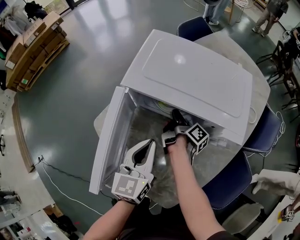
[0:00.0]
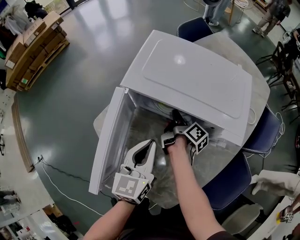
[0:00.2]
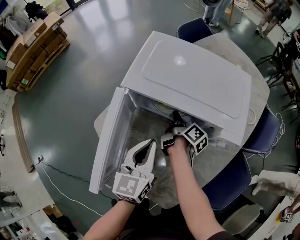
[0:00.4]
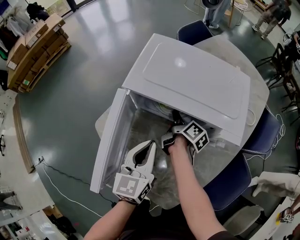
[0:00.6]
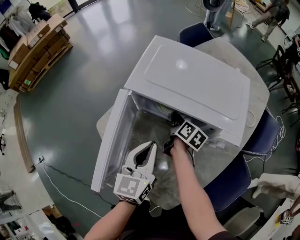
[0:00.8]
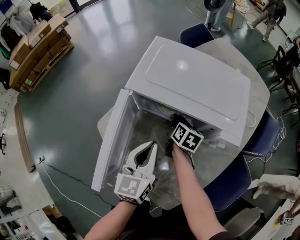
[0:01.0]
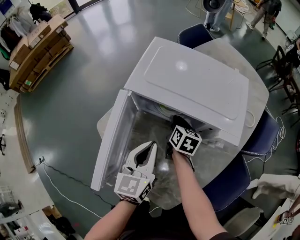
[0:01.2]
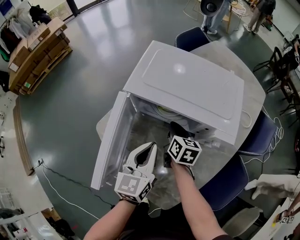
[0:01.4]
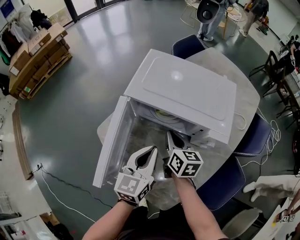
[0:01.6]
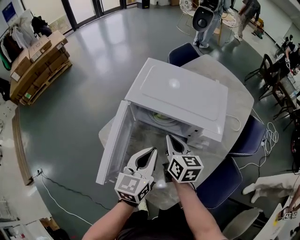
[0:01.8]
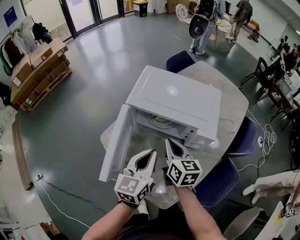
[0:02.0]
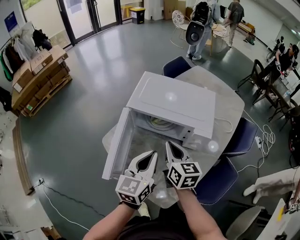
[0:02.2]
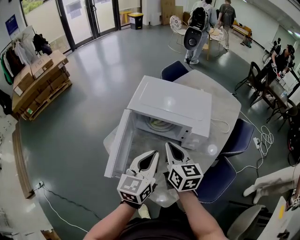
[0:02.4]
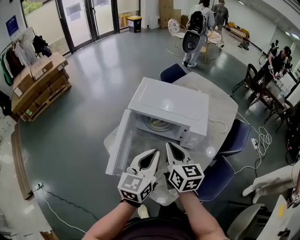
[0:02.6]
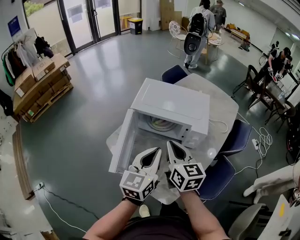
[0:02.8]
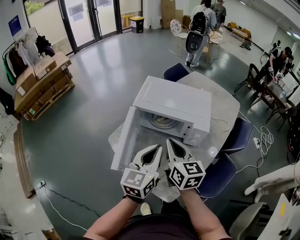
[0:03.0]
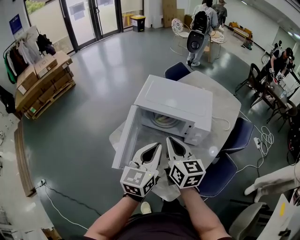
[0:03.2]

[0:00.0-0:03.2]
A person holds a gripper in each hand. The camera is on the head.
1.6 to 3.2 s: The left gripper is displaced upward by approximately 15 cm.

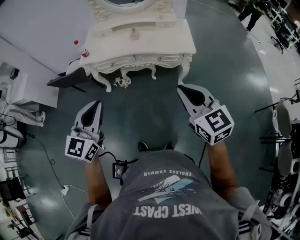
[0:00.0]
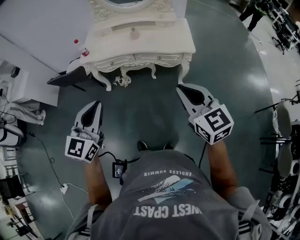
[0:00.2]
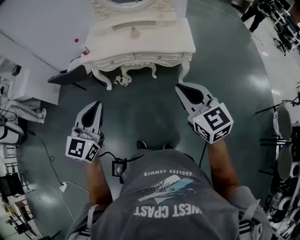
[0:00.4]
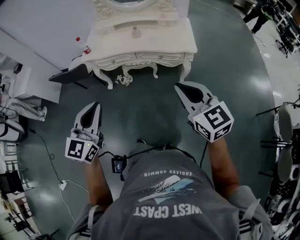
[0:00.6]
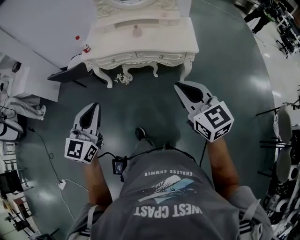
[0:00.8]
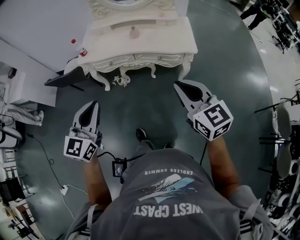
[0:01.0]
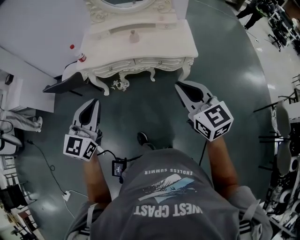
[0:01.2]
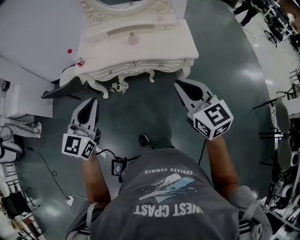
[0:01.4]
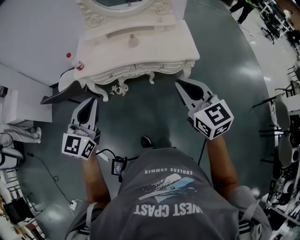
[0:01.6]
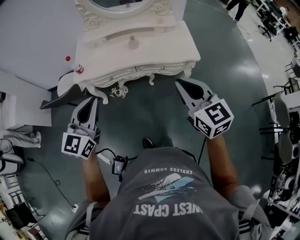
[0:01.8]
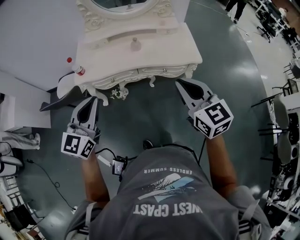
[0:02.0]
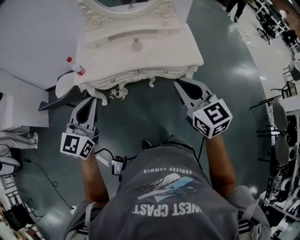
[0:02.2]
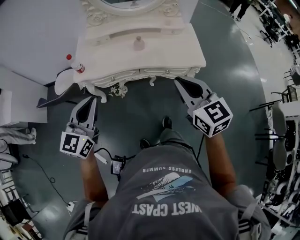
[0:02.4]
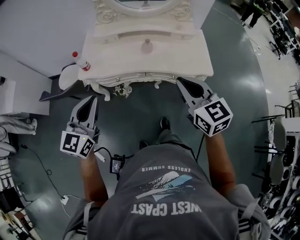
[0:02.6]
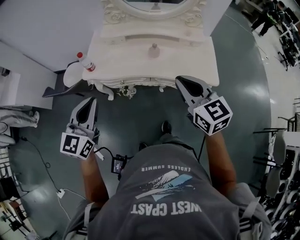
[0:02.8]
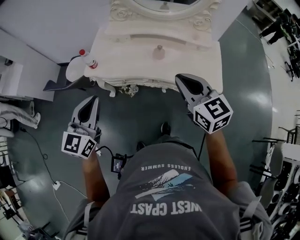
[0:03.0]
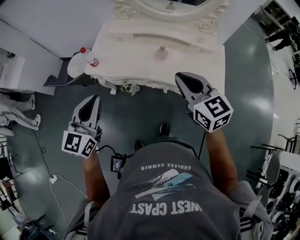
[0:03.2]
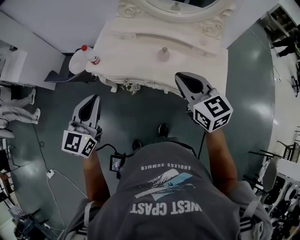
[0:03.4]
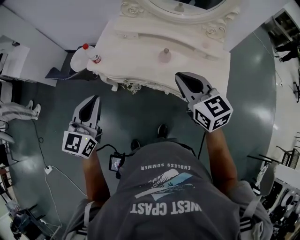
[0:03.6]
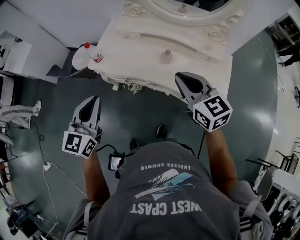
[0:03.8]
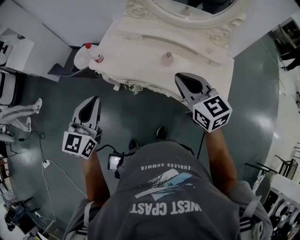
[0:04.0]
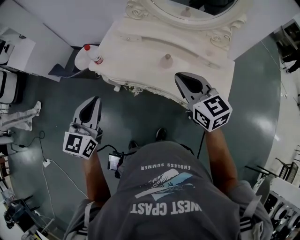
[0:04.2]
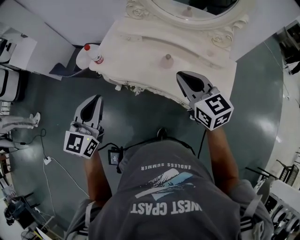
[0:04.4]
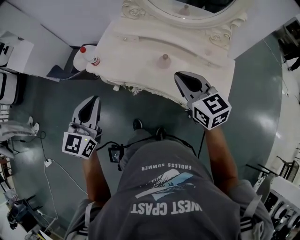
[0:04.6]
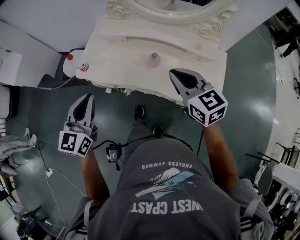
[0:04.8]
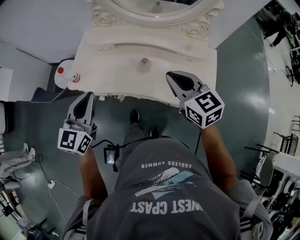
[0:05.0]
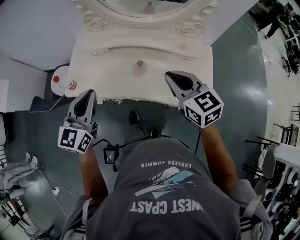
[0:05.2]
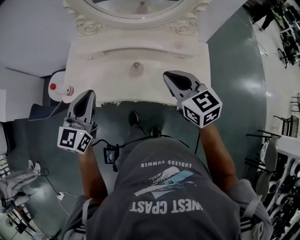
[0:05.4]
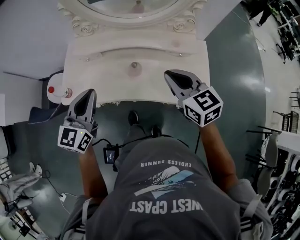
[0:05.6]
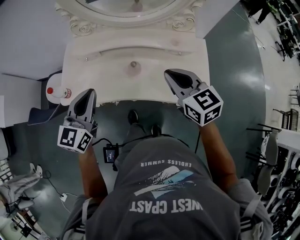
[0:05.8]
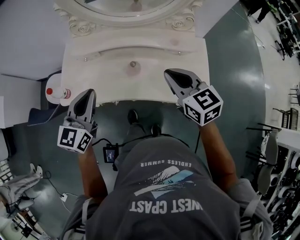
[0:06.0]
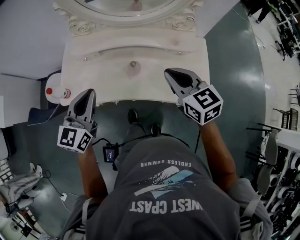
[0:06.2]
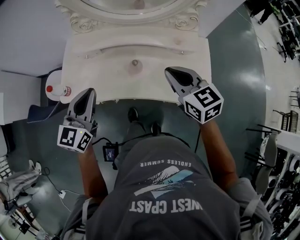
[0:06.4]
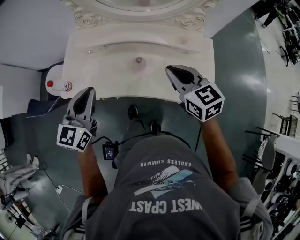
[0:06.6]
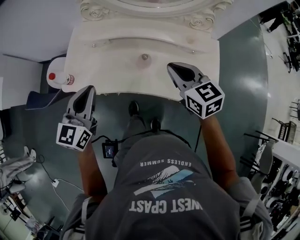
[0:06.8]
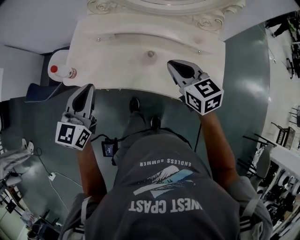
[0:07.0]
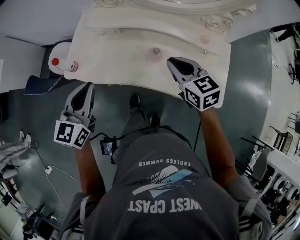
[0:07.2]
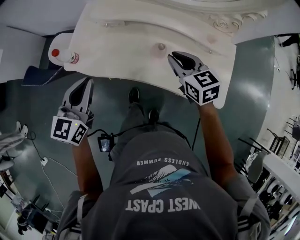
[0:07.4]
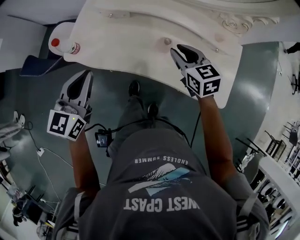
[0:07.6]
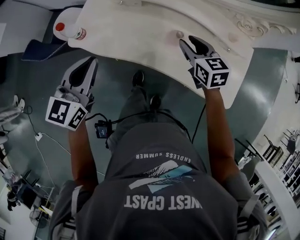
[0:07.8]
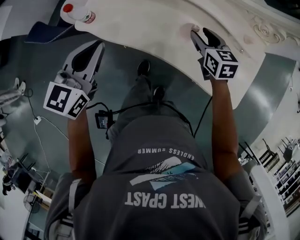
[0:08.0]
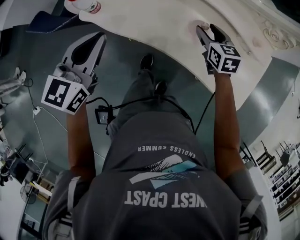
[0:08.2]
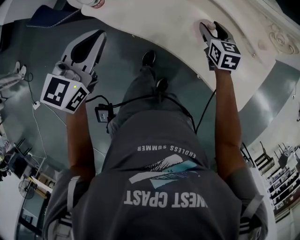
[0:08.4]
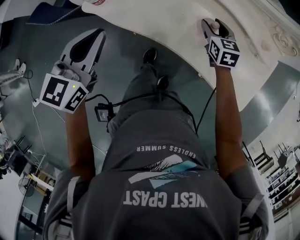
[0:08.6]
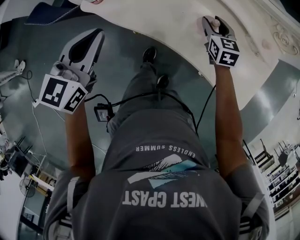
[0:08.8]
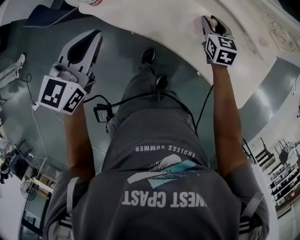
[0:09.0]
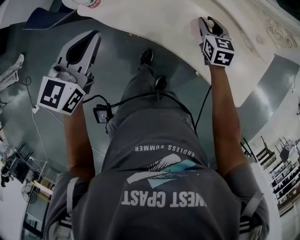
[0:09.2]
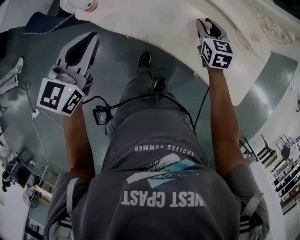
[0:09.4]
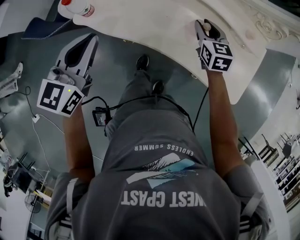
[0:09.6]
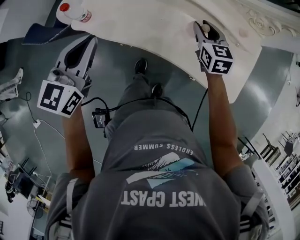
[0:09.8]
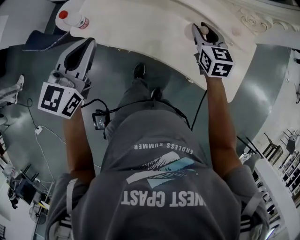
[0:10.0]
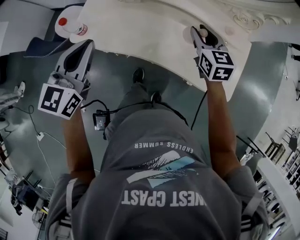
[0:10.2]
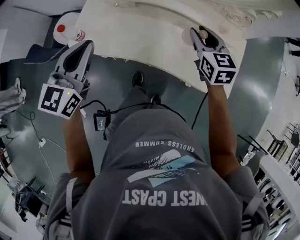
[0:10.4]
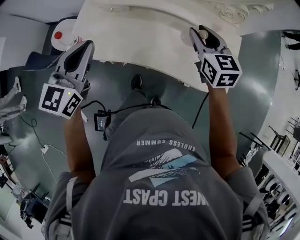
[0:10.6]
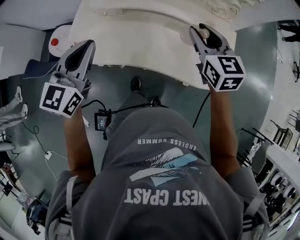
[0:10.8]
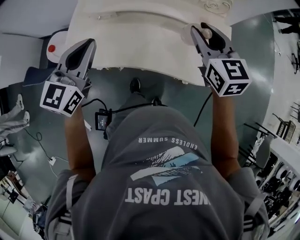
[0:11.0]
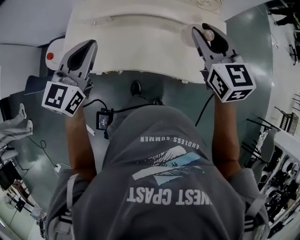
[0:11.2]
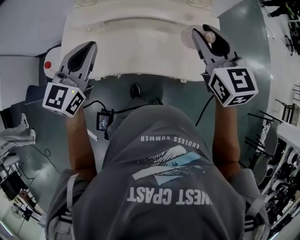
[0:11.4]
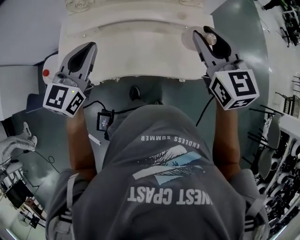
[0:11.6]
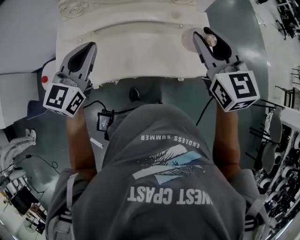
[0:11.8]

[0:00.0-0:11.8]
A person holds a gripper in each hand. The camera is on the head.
0.0 to 1.4 s: Both grippers move forward, approximately 10 cm.
1.4 to 3.0 s: Both grippers move forward, about 20 cm.
3.0 to 4.4 s: The left gripper goes approximately 5 cm to the right. The right gripper moves forward, some 10 cm.
4.4 to 6.0 s: The right gripper heads to the right and forward, covering roughly 10 cm; the left gripper moves forward and to the right, approximately 15 cm, and rotates approximately 20 degrees.
6.0 to 7.4 s: The right gripper shifts roughly 15 cm downward, to the left and forward; the left gripper shifts some 10 cm to the left.
7.4 to 8.8 s: The right gripper shifts approximately 20 cm downward and forward, and opens, while the left gripper moves roughly 5 cm.
8.8 to 10.4 s: The right gripper shifts some 20 cm upward, while the left gripper travels upward and to the right by some 10 cm.
10.4 to 11.8 s: The left gripper goes about 10 cm forward, and changes its angle by about 20 degrees. The right gripper shifts about 15 cm upward and backward.

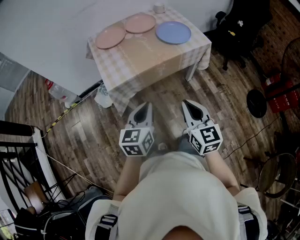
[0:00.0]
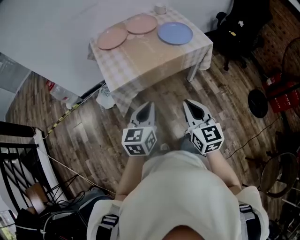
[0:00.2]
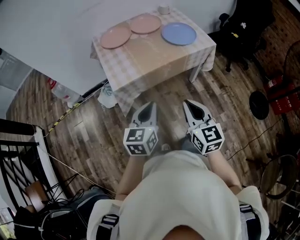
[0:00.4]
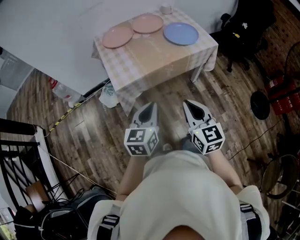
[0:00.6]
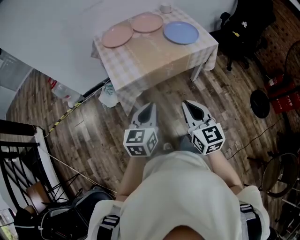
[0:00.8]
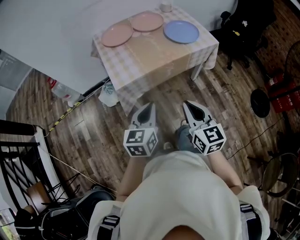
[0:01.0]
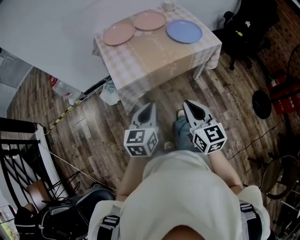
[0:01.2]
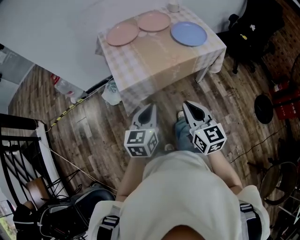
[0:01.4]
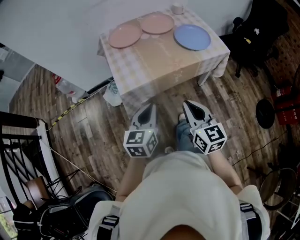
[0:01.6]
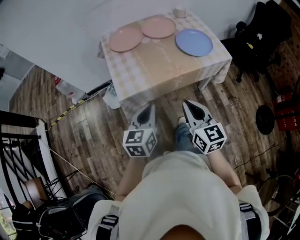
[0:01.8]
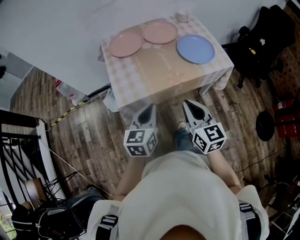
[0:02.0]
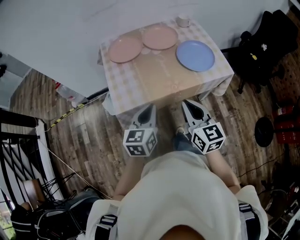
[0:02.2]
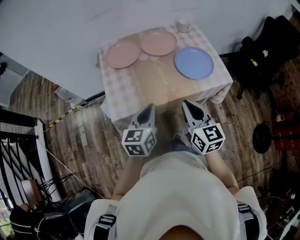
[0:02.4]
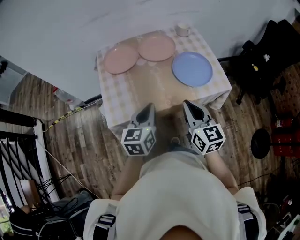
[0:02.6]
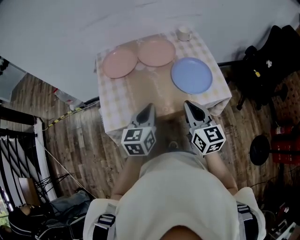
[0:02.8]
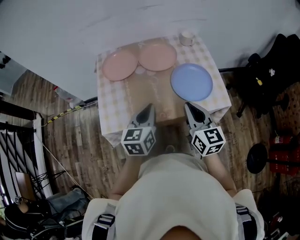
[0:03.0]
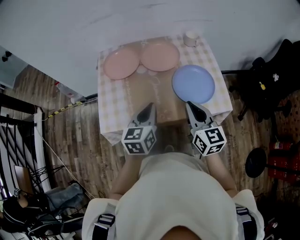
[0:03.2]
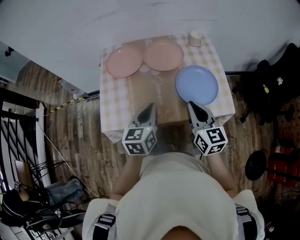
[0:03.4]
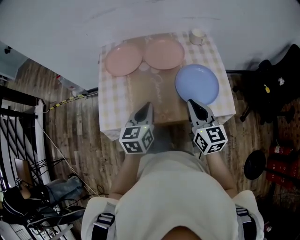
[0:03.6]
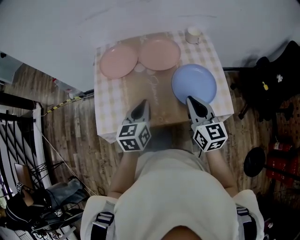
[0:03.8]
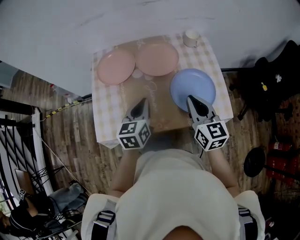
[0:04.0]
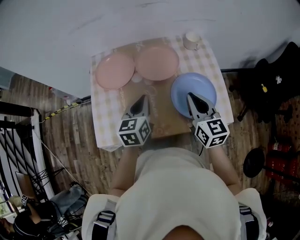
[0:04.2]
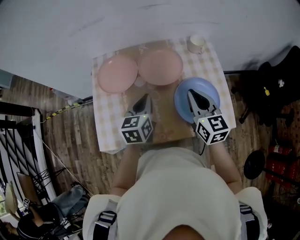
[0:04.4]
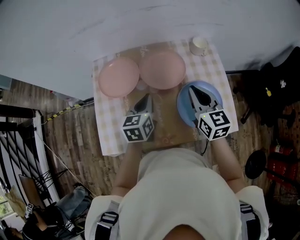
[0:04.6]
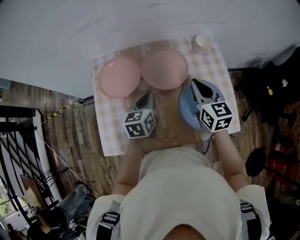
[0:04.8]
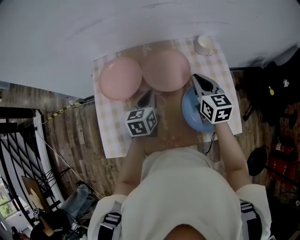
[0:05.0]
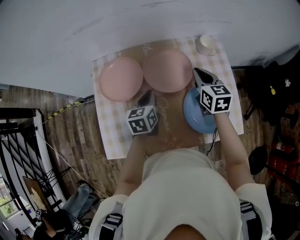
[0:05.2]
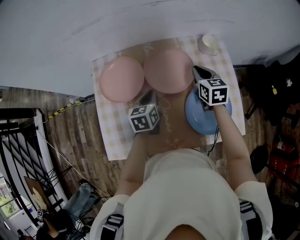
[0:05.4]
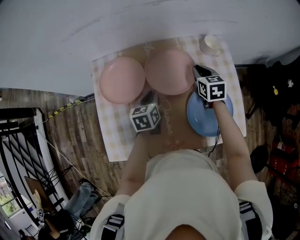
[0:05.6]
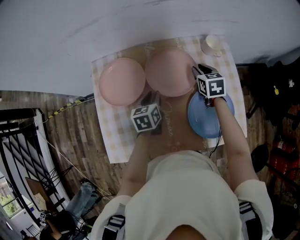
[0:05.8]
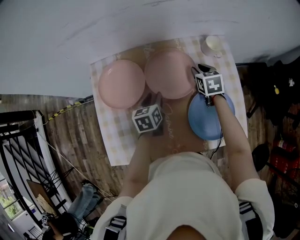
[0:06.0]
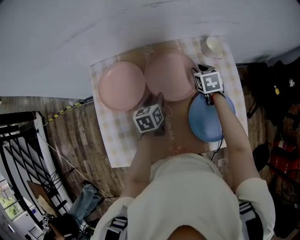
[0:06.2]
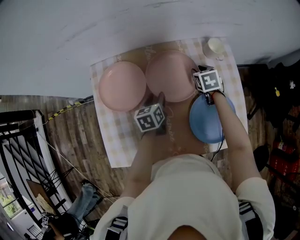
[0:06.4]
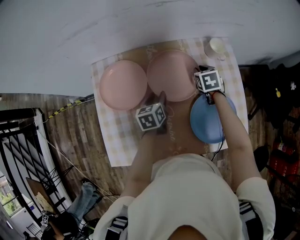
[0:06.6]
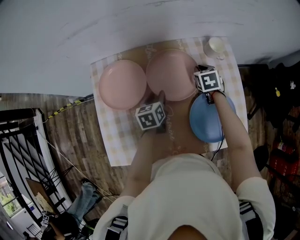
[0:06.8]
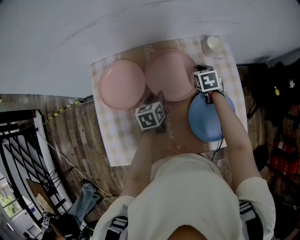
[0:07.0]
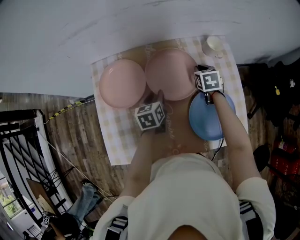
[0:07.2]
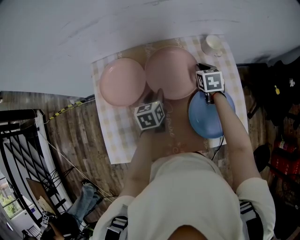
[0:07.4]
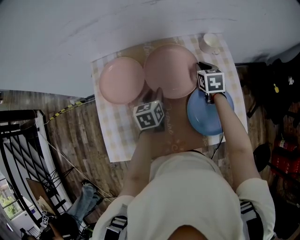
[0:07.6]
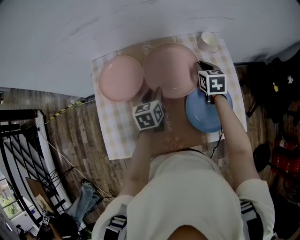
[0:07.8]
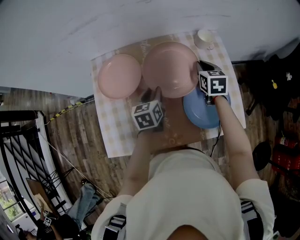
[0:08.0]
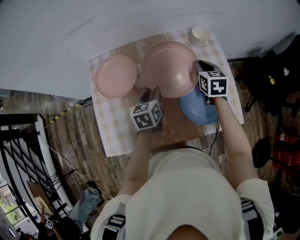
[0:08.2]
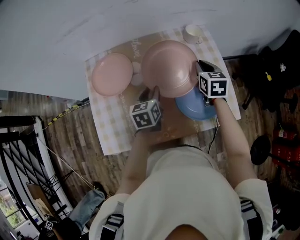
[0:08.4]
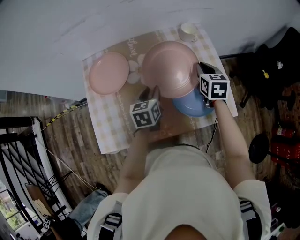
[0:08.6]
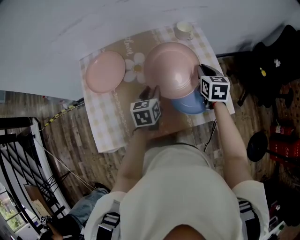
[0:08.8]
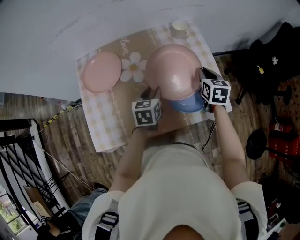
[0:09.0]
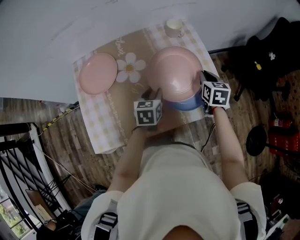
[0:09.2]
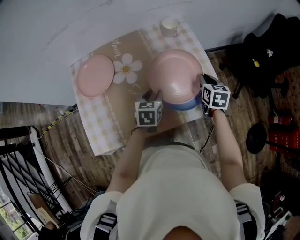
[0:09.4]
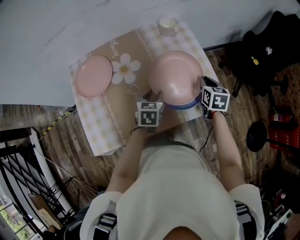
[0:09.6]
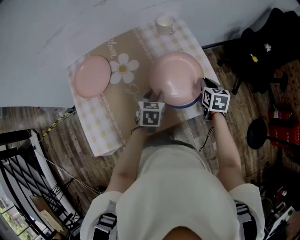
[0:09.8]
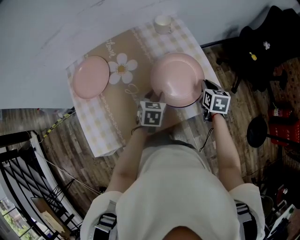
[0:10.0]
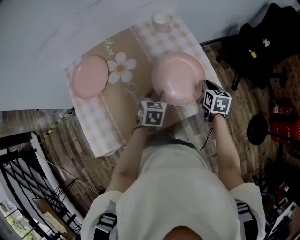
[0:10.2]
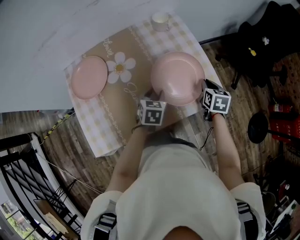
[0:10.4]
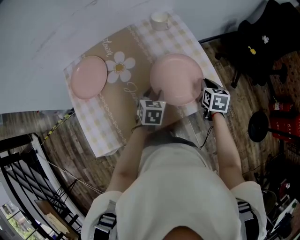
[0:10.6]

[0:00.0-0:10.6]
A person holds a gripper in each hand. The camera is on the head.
0.0 to 1.6 s: The left gripper heads forward, covering roughly 5 cm. Meanwhile the right gripper shifts about 10 cm forward and to the left.
1.6 to 3.0 s: Both grippers travel together forward and to the right, roughly 30 cm.
3.0 to 4.6 s: Both grippers move forward, about 20 cm.
4.6 to 6.0 s: The right gripper is displaced forward and downward by some 25 cm, points its fingers approximately 30 degrees further downward, and opens up. The left gripper goes some 15 cm downward and forward, and opens.
6.0 to 7.6 s: The grippers move only a little.
7.6 to 9.0 s: The left gripper moves to the right and backward, about 15 cm. Meanwhile the right gripper shifts approximately 20 cm backward and to the right.
9.0 to 10.6 s: The left gripper shifts some 5 cm to the right, and changes its angle by approximately 20 degrees. The right gripper goes about 15 cm to the right, backward and downward.
